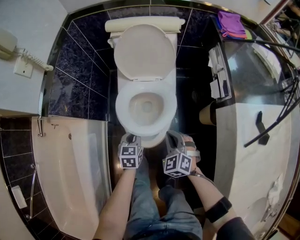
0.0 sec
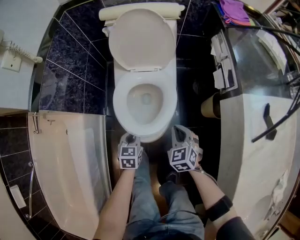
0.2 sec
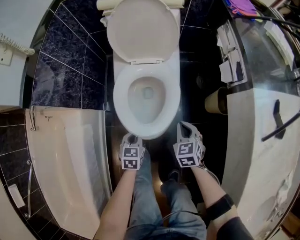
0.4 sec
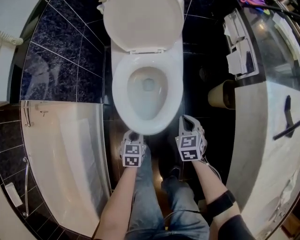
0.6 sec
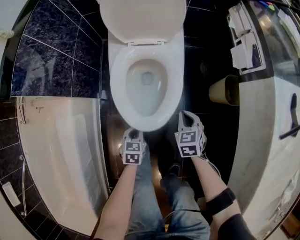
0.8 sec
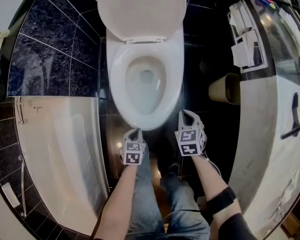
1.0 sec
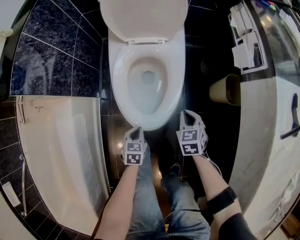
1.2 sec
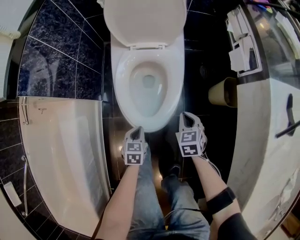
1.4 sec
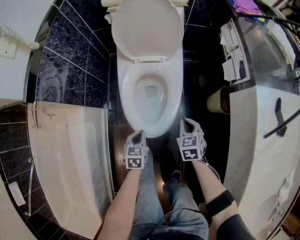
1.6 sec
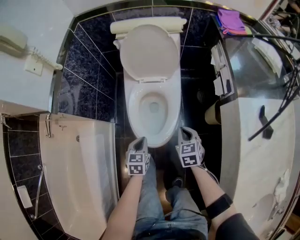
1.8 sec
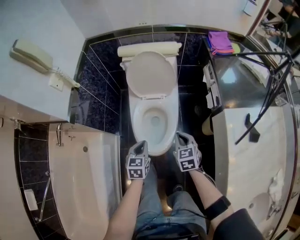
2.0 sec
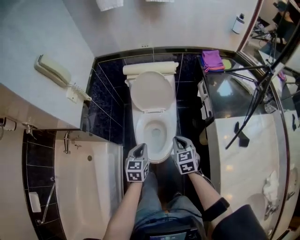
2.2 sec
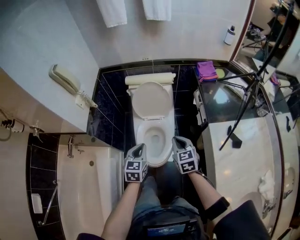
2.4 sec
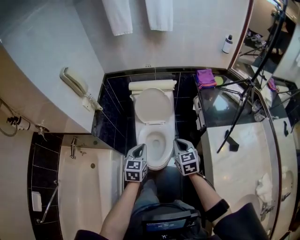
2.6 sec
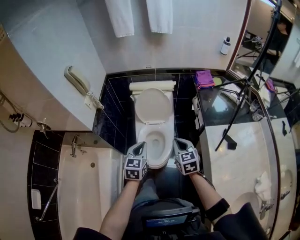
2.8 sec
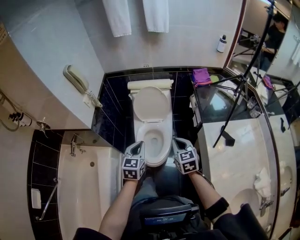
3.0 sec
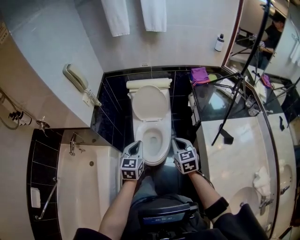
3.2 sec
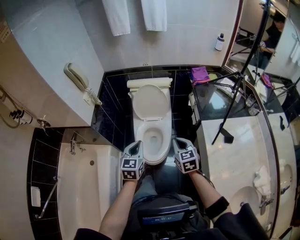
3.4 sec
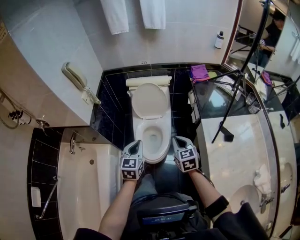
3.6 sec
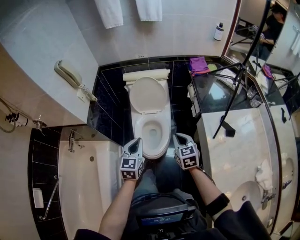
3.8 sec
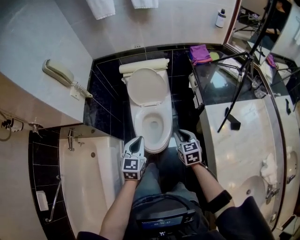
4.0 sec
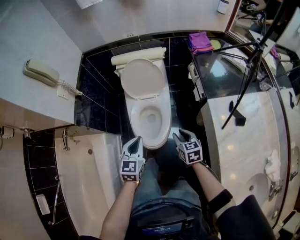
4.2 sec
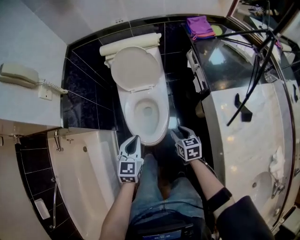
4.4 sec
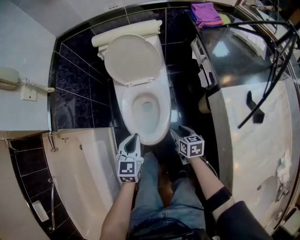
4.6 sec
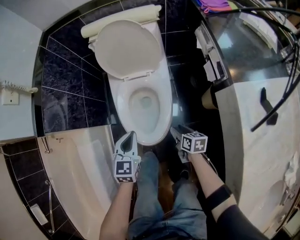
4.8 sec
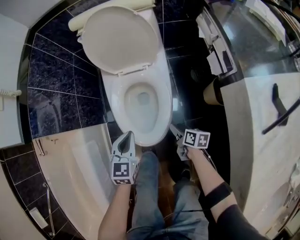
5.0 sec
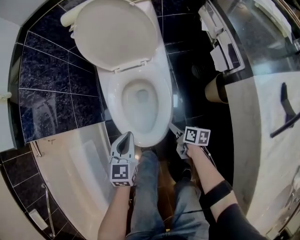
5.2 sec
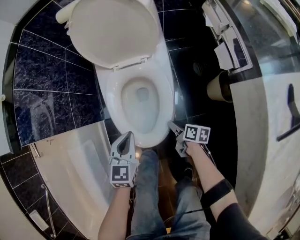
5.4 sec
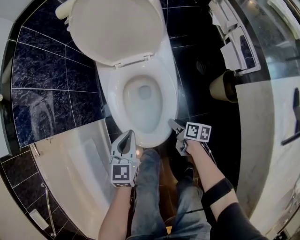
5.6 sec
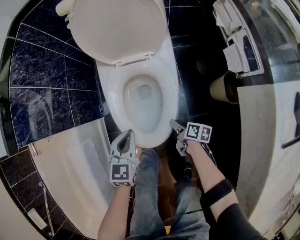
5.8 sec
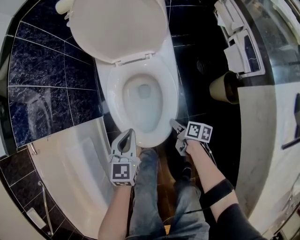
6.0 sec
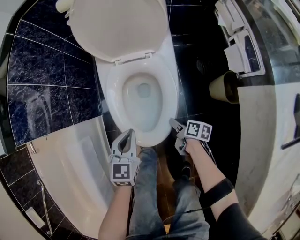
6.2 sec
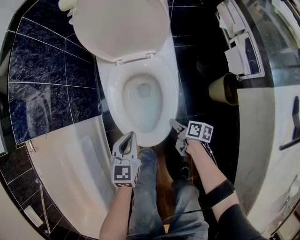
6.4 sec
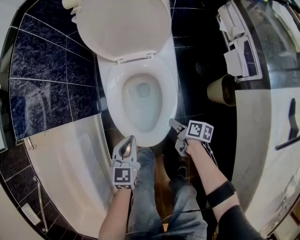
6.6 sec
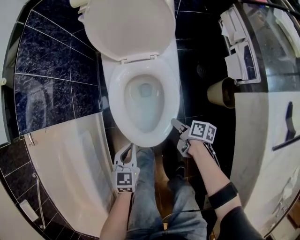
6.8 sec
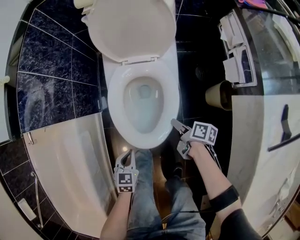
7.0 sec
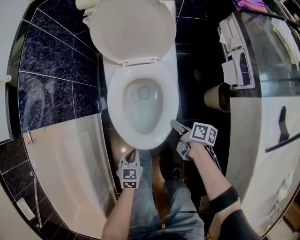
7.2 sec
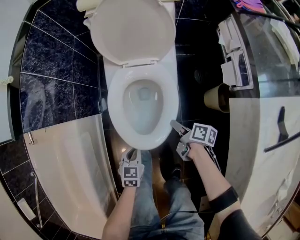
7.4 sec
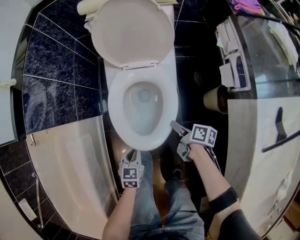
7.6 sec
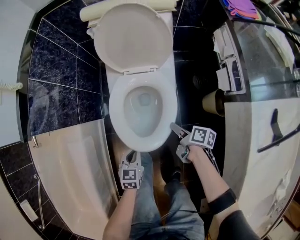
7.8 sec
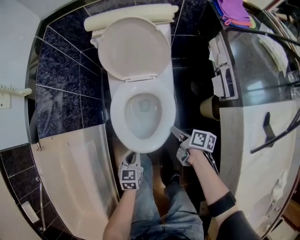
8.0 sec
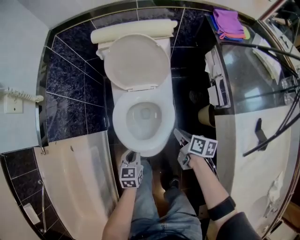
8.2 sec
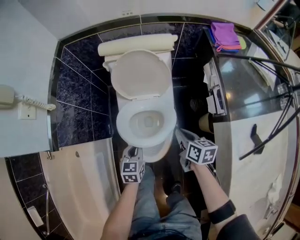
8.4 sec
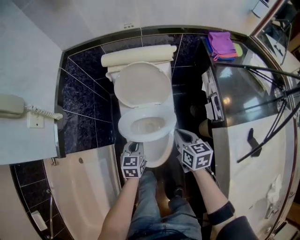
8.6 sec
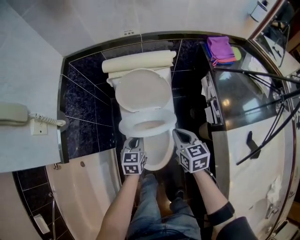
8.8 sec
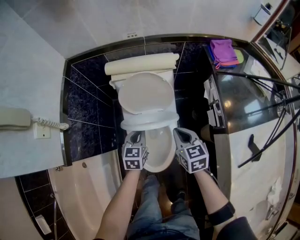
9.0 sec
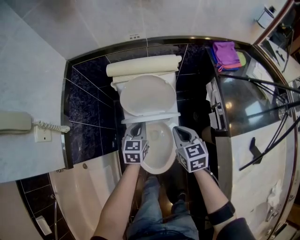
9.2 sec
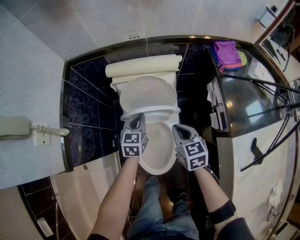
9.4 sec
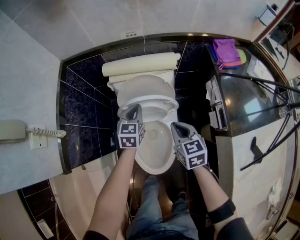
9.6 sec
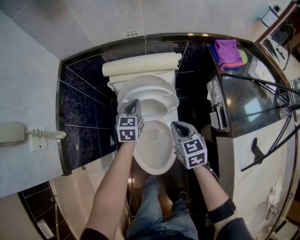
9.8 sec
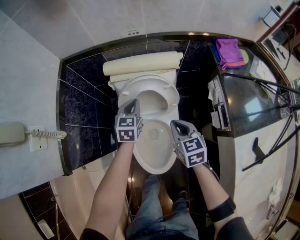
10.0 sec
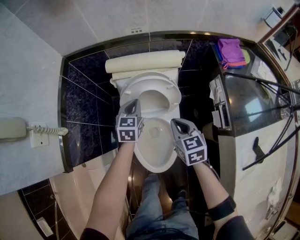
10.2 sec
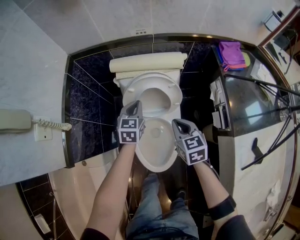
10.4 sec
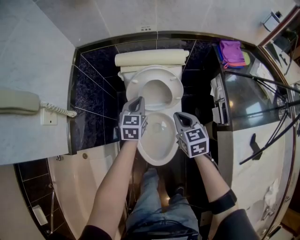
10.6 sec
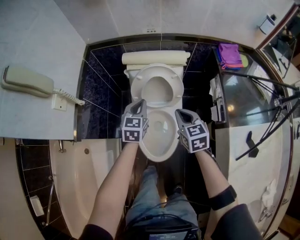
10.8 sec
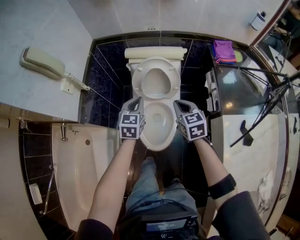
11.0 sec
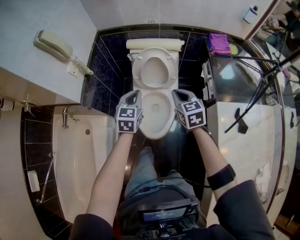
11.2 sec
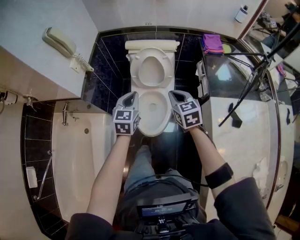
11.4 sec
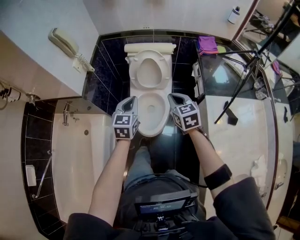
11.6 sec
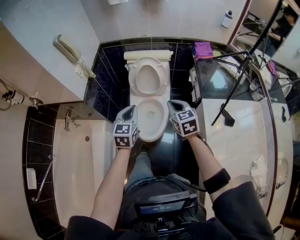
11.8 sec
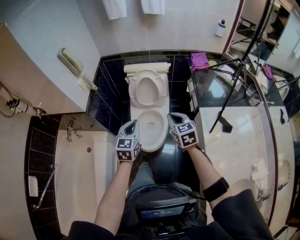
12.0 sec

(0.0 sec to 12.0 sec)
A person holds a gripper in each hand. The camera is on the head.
0.0 sec - 1.6 sec: The left gripper moves downward and backward, approximately 15 cm. The right gripper heads downward and to the right, covering approximately 15 cm, and rotates roughly 30 degrees.
1.6 sec - 3.0 sec: Both grippers travel together upward, roughly 50 cm. The left gripper changes its angle by roughly 30 degrees. The right gripper swivels some 20 degrees.
3.0 sec - 4.4 sec: The right gripper shifts roughly 25 cm downward, swivels approximately 30 degrees, and opens, while the left gripper heads downward, covering approximately 15 cm.
4.4 sec - 6.0 sec: Both grippers move downward, some 30 cm. The right gripper rolls clockwise, seen from behind, by roughly 50 degrees.
6.0 sec - 7.6 sec: The right gripper is displaced upward by some 15 cm, while the left gripper goes roughly 10 cm backward.
7.6 sec - 9.0 sec: The left gripper heads forward and upward, covering about 35 cm, while the right gripper travels upward and forward by roughly 35 cm, twists about 60 degrees counterclockwise, seen from behind, and closes up.
9.0 sec - 10.4 sec: The left gripper travels forward by about 15 cm. The right gripper travels forward by some 5 cm.
10.4 sec - 12.0 sec: The two grippers go roughly 40 cm backward and upward.

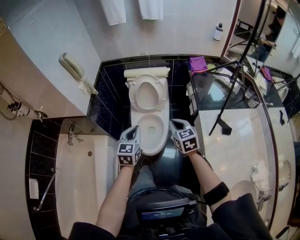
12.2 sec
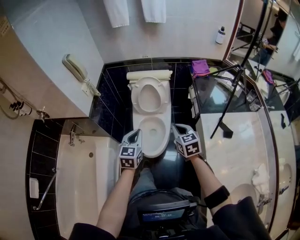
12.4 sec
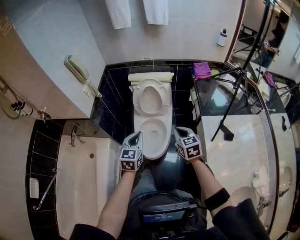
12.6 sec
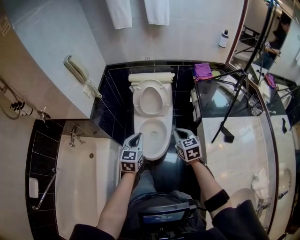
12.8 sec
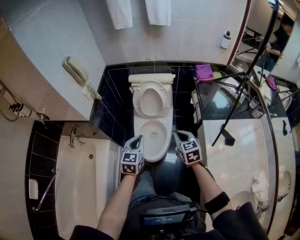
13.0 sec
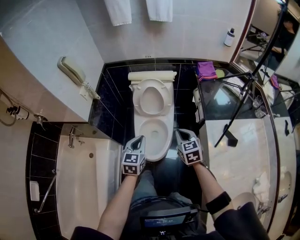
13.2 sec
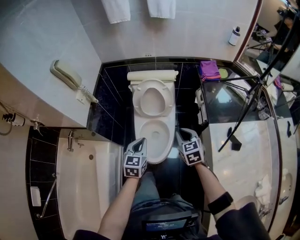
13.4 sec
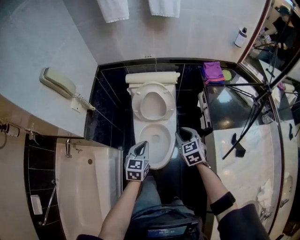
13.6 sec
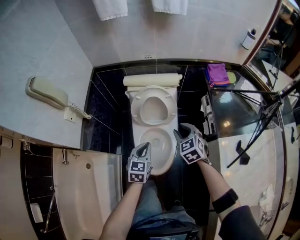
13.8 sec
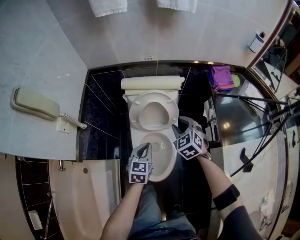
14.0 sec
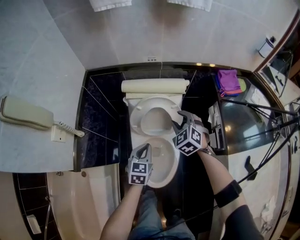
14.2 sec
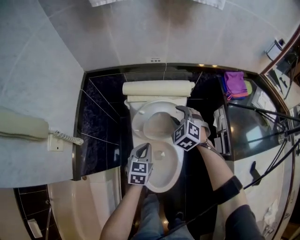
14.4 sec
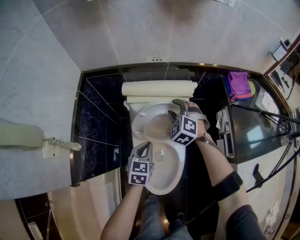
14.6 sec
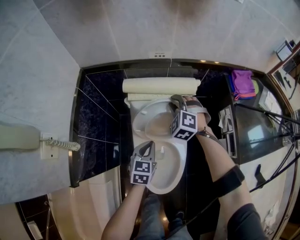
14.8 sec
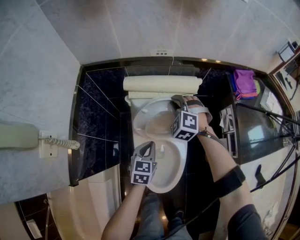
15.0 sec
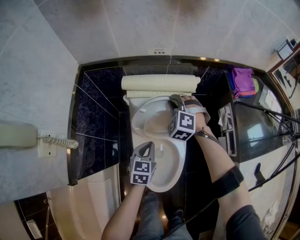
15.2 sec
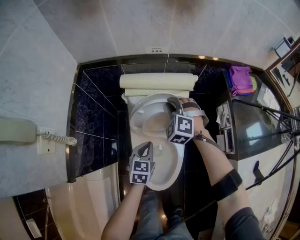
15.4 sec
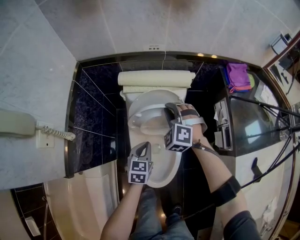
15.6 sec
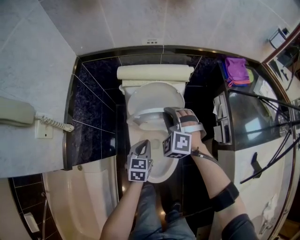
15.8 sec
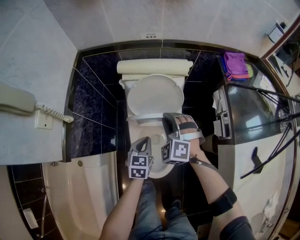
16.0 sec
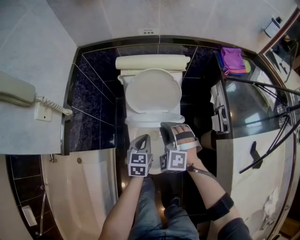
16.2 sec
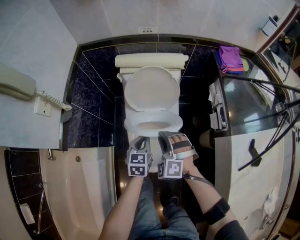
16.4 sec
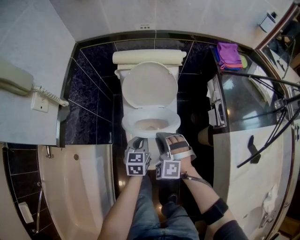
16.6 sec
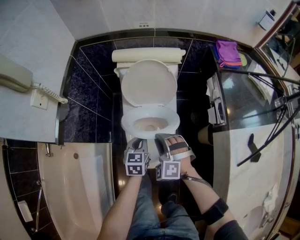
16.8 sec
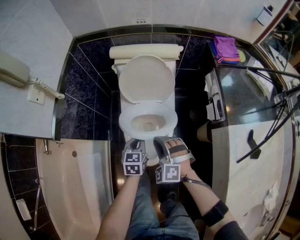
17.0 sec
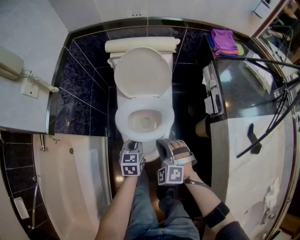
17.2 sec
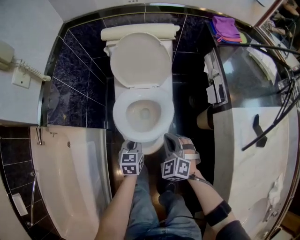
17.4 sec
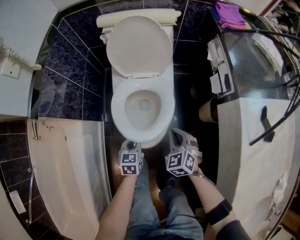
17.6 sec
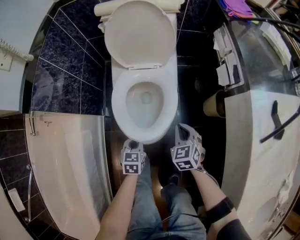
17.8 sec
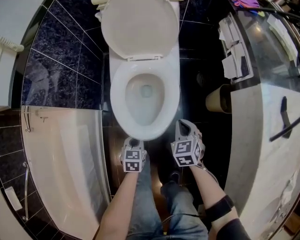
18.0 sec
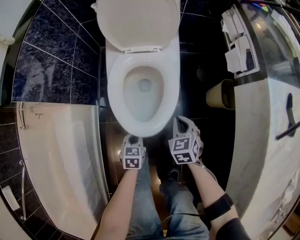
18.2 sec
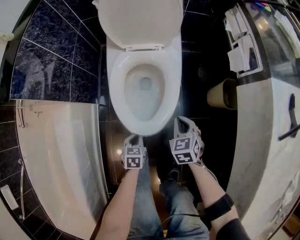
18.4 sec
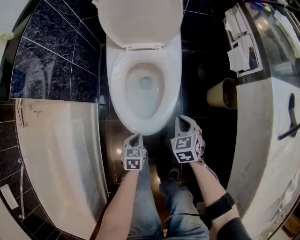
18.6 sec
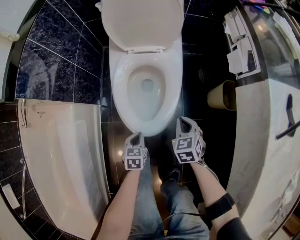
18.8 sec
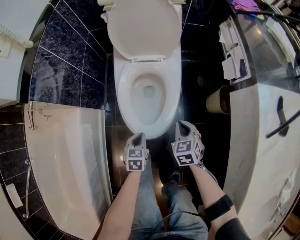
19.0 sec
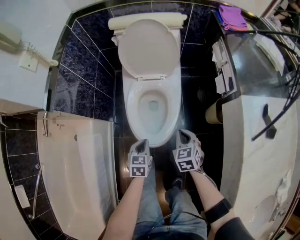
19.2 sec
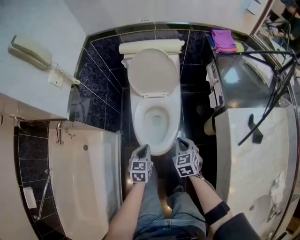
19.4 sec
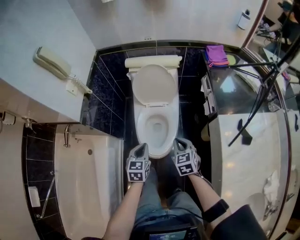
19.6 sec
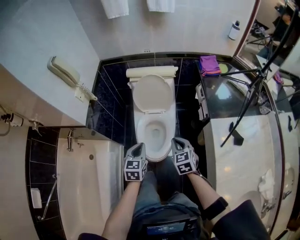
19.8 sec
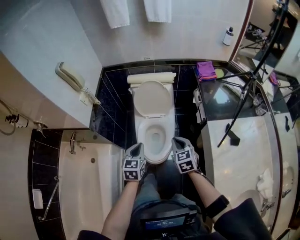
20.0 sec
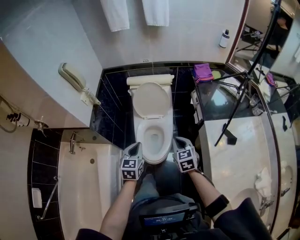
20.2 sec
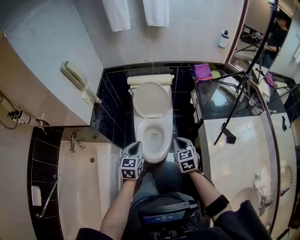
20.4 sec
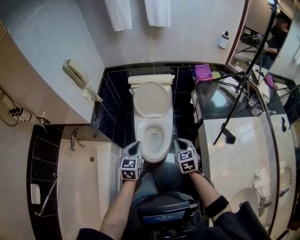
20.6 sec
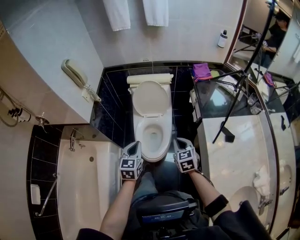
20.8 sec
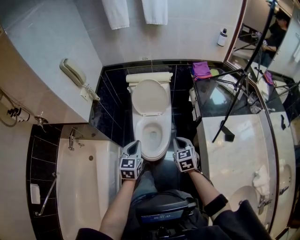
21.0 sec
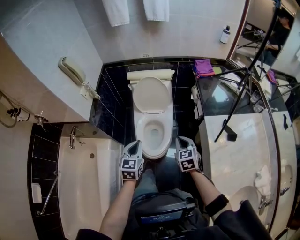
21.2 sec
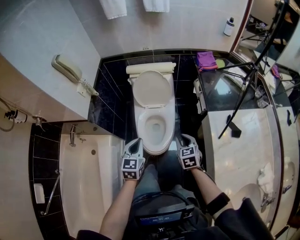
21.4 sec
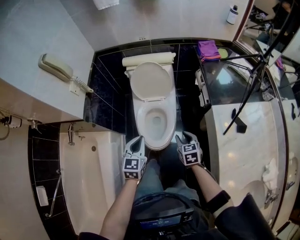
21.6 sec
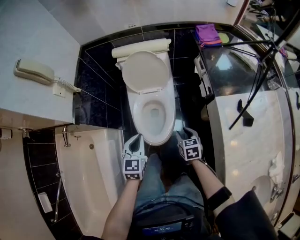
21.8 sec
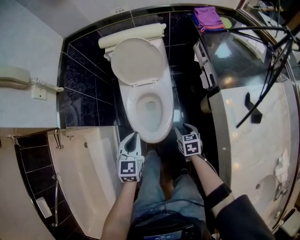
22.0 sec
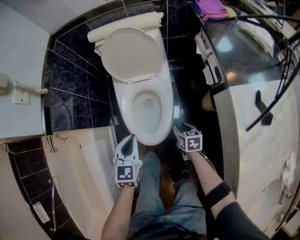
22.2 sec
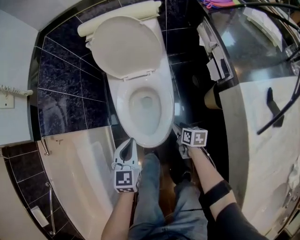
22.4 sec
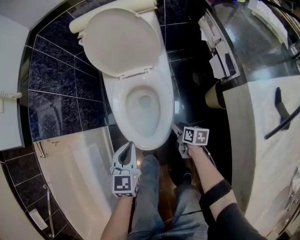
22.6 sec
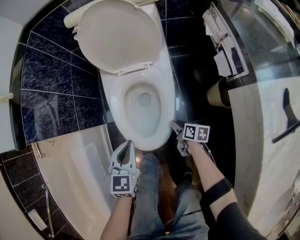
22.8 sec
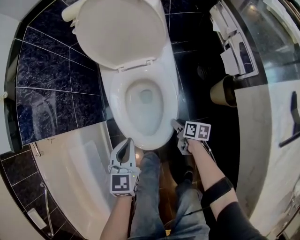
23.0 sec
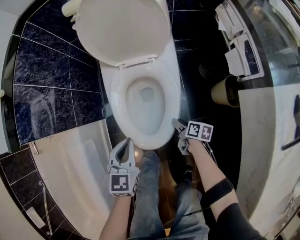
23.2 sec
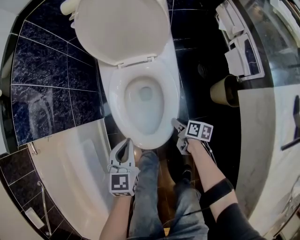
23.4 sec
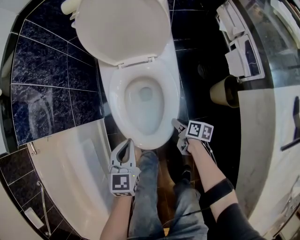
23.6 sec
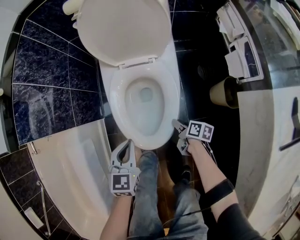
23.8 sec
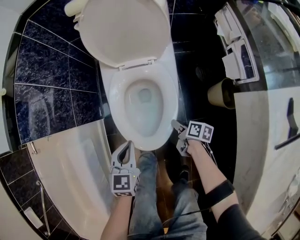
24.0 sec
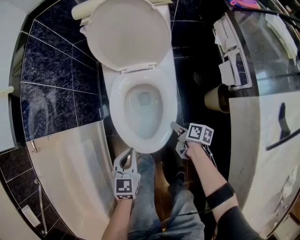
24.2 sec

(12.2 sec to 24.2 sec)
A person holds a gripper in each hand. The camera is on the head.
12.2 sec - 13.8 sec: Both grippers move forward and downward, roughly 25 cm. The right gripper rotates approximately 20 degrees, and opens.
13.8 sec - 15.2 sec: The left gripper heads forward and downward, covering about 20 cm. The right gripper travels forward and to the left by roughly 30 cm, and rotates around the line of its fingers by approximately 40 degrees, counterclockwise from behind.
15.2 sec - 16.6 sec: The left gripper shifts approximately 15 cm backward. Meanwhile the right gripper heads backward, covering approximately 30 cm.
16.6 sec - 18.2 sec: The right gripper is displaced downward, to the right and backward by about 35 cm, and rotates around the line of its fingers by approximately 50 degrees, clockwise from behind. The left gripper moves downward and backward, about 40 cm.
18.2 sec - 19.8 sec: The two grippers go roughly 50 cm upward. The left gripper changes its angle by roughly 20 degrees.
19.8 sec - 21.2 sec: The right gripper changes place by about 5 cm. The left gripper shifts some 5 cm upward.
21.2 sec - 22.6 sec: The left gripper heads downward, covering approximately 35 cm, while the right gripper goes approximately 50 cm downward, rolls clockwise, seen from behind, by some 50 degrees, and opens up.
22.6 sec - 24.2 sec: The right gripper travels downward and back again, some 5 cm each way. Meanwhile the left gripper travels downward by some 5 cm.
